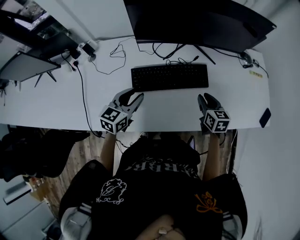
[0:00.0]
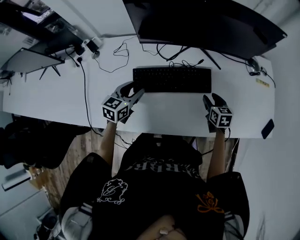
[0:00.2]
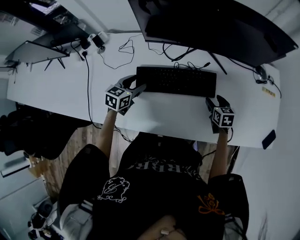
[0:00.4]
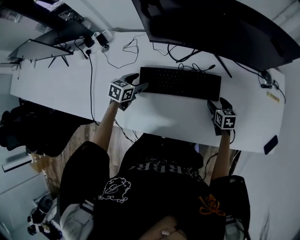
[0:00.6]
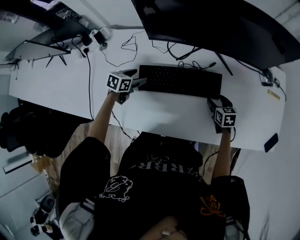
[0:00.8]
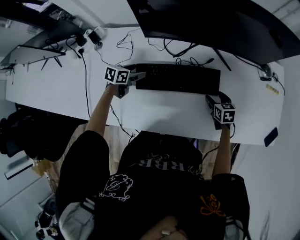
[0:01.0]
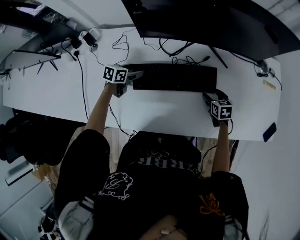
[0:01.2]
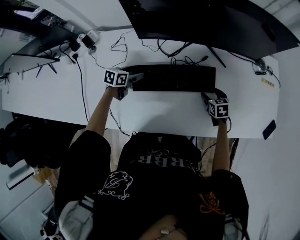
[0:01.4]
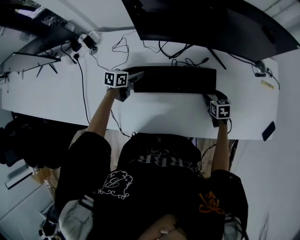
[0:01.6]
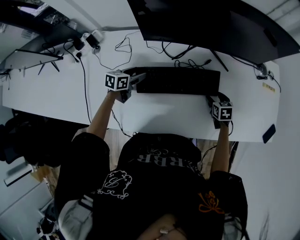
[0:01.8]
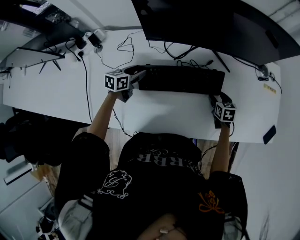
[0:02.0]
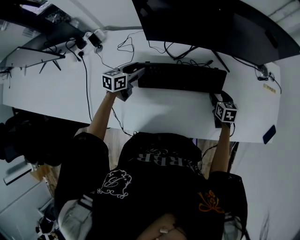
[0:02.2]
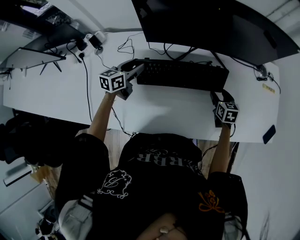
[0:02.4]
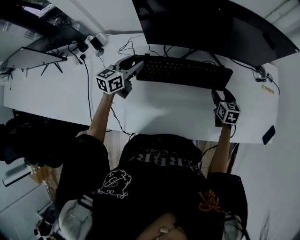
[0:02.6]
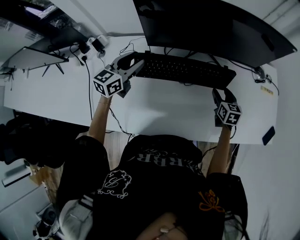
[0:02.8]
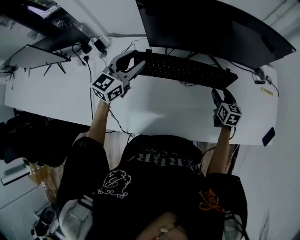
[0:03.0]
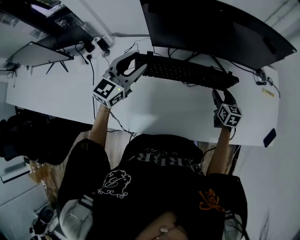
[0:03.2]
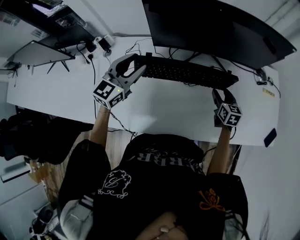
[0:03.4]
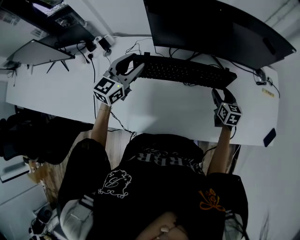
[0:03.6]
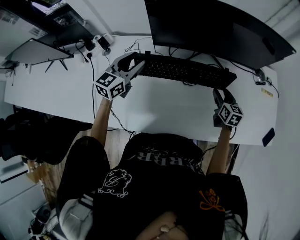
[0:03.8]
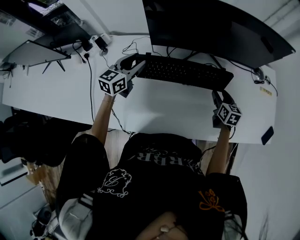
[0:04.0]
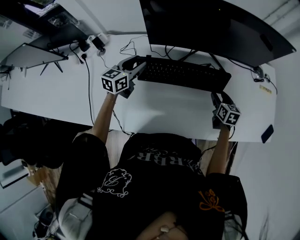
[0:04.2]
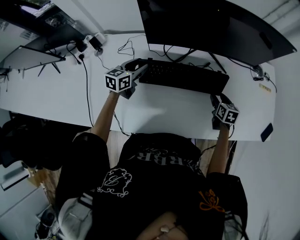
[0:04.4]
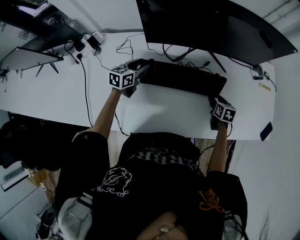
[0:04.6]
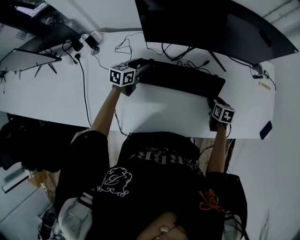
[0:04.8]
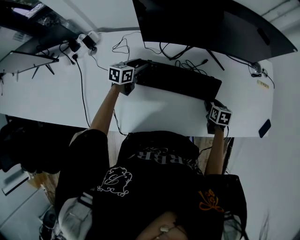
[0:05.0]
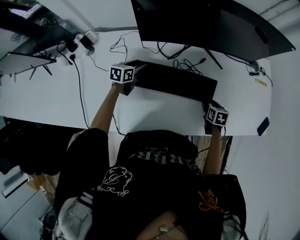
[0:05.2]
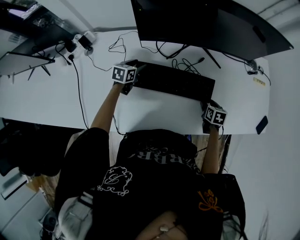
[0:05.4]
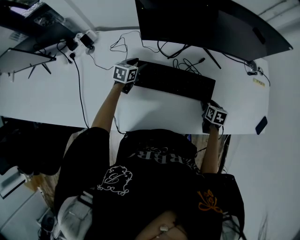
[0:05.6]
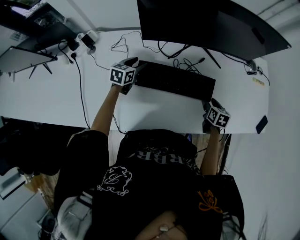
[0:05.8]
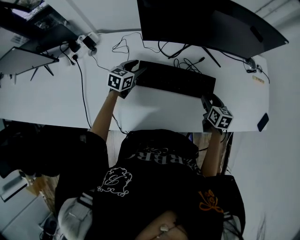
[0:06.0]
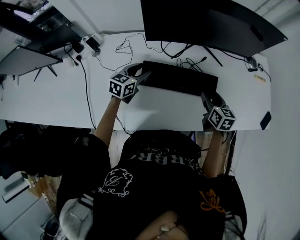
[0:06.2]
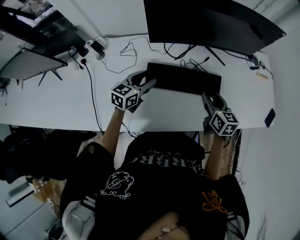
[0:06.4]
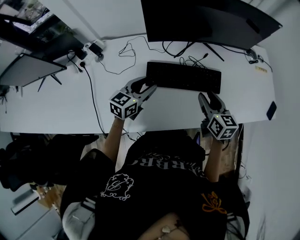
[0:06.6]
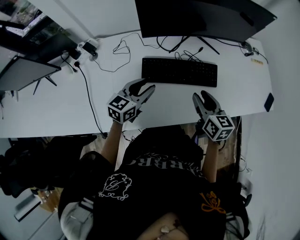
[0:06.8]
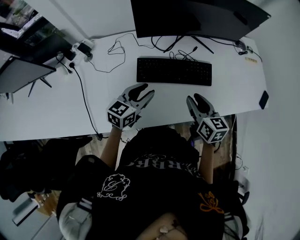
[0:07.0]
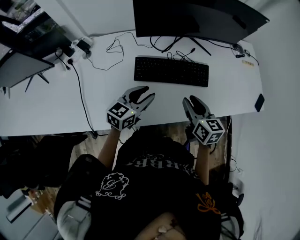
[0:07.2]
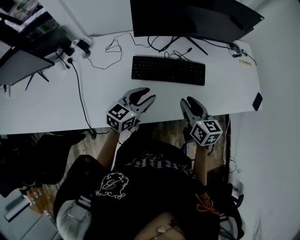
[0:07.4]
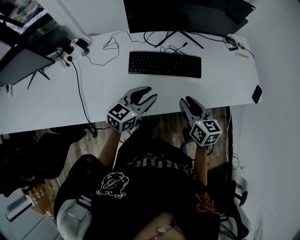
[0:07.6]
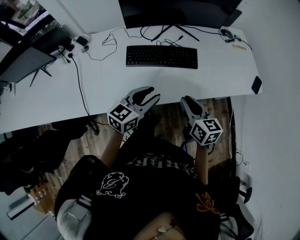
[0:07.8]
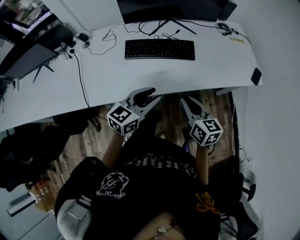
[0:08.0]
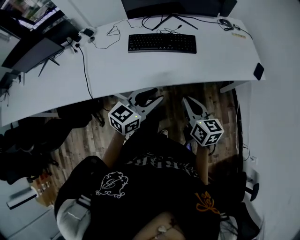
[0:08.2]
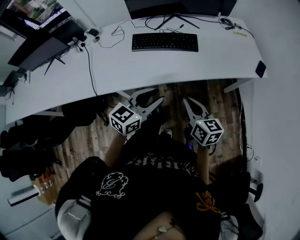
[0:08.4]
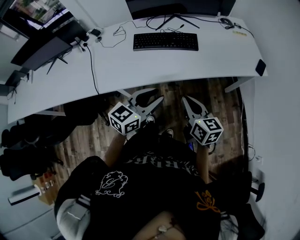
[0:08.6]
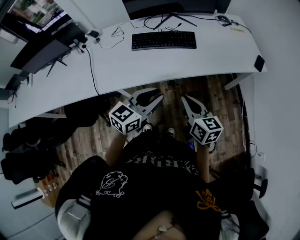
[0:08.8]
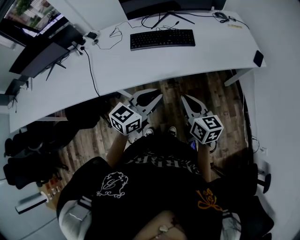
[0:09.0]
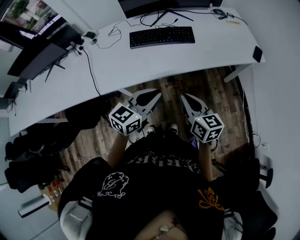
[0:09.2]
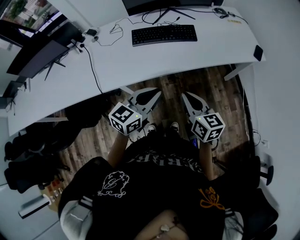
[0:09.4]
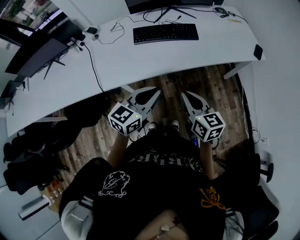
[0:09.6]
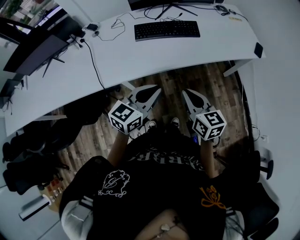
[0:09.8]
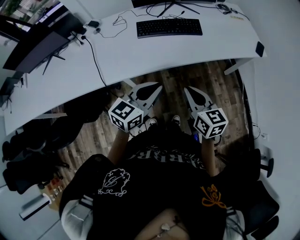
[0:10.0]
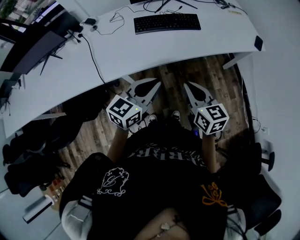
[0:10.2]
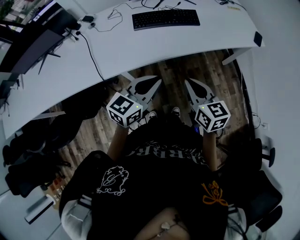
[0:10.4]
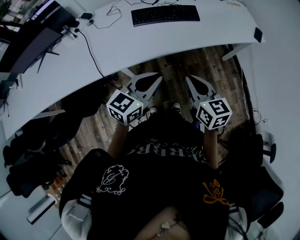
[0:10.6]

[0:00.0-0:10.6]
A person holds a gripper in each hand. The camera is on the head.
0:00.0 to 0:01.6: The grippers both shift downward and forward by about 20 cm. The right gripper swivels roughly 20 degrees, and opens up. Meanwhile the left gripper turns by some 30 degrees, and opens its fingers.
0:01.6 to 0:03.0: The left gripper goes approximately 25 cm upward, and rotates approximately 50 degrees, while the right gripper goes some 10 cm upward, and rotates about 20 degrees.
0:03.0 to 0:04.6: The right gripper travels downward by approximately 10 cm. The left gripper goes about 20 cm downward, and changes its angle by about 30 degrees.
0:04.6 to 0:06.0: The right gripper moves upward and backward, about 10 cm.
0:06.0 to 0:07.6: The right gripper moves backward and upward, some 25 cm, and closes; the left gripper heads backward, to the right and upward, covering approximately 30 cm, and rotates some 20 degrees.
0:07.6 to 0:09.0: The right gripper goes approximately 25 cm backward, and closes up. Meanwhile the left gripper shifts some 25 cm backward and to the right.
0:09.0 to 0:10.6: The grippers both shift to the left and backward by approximately 10 cm.

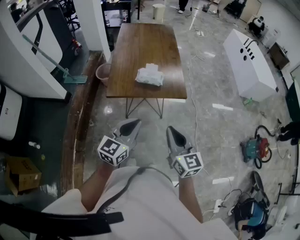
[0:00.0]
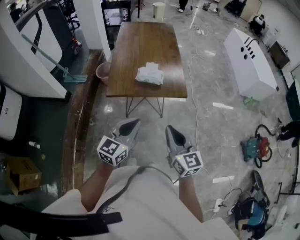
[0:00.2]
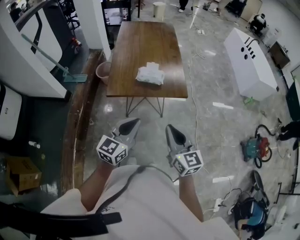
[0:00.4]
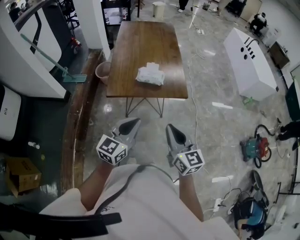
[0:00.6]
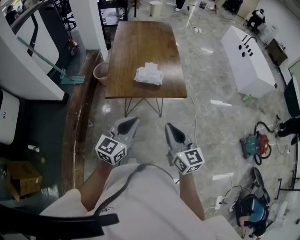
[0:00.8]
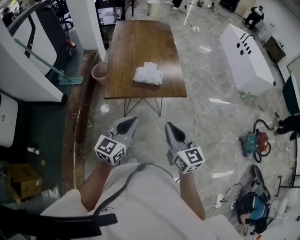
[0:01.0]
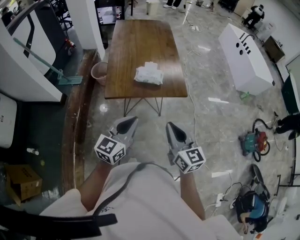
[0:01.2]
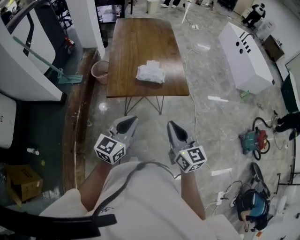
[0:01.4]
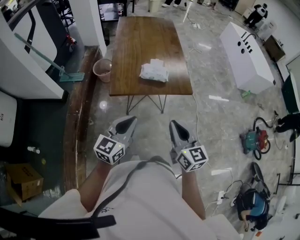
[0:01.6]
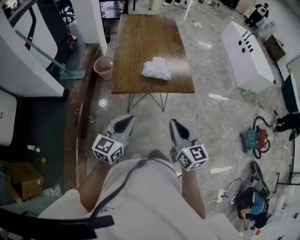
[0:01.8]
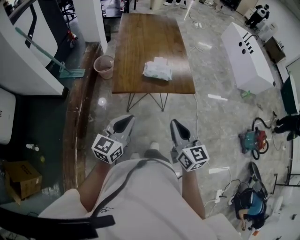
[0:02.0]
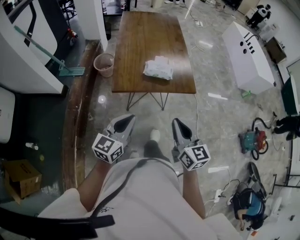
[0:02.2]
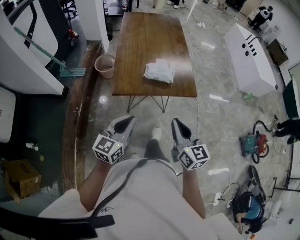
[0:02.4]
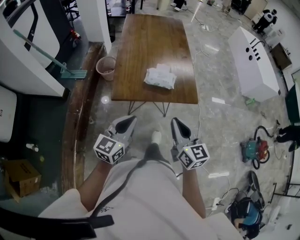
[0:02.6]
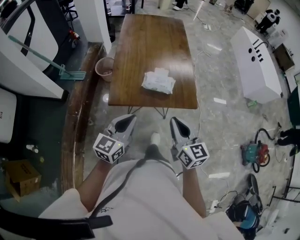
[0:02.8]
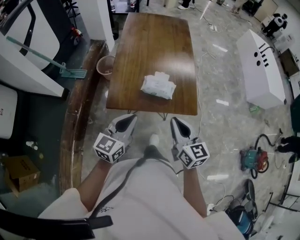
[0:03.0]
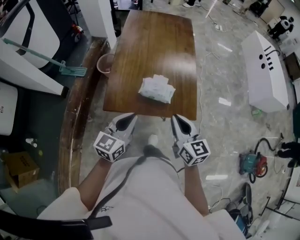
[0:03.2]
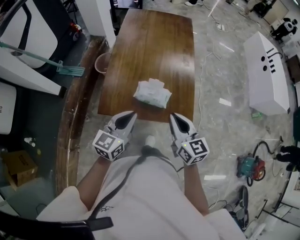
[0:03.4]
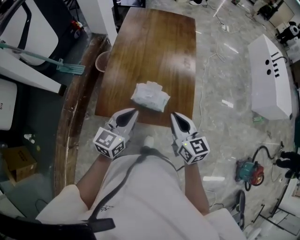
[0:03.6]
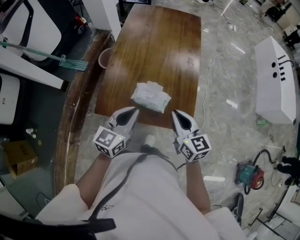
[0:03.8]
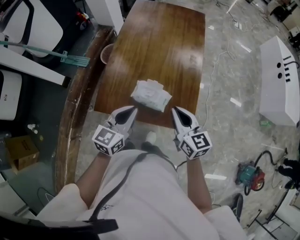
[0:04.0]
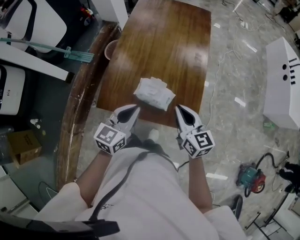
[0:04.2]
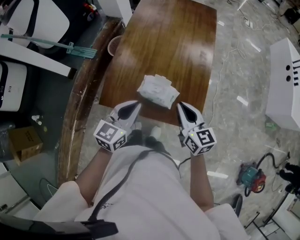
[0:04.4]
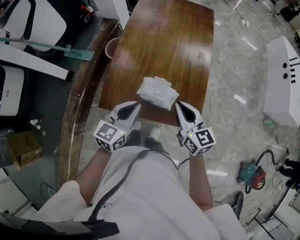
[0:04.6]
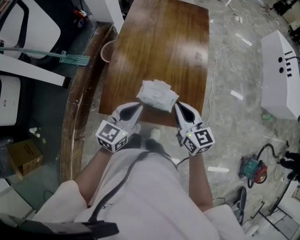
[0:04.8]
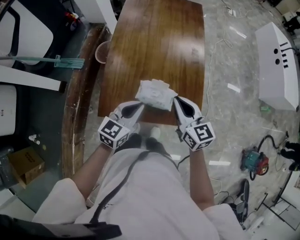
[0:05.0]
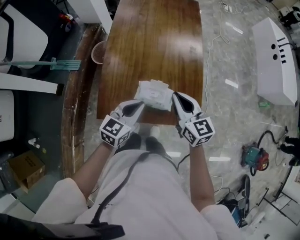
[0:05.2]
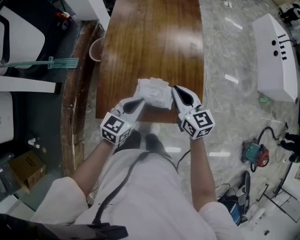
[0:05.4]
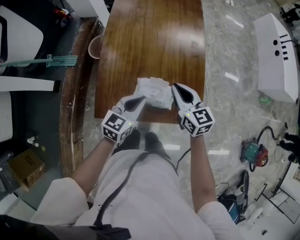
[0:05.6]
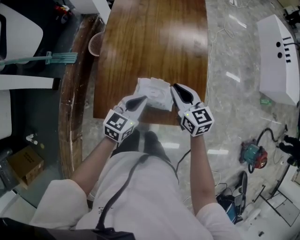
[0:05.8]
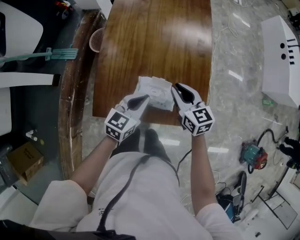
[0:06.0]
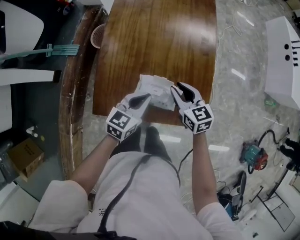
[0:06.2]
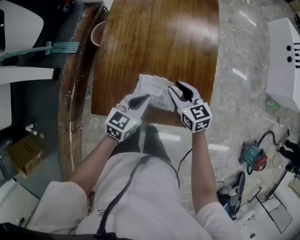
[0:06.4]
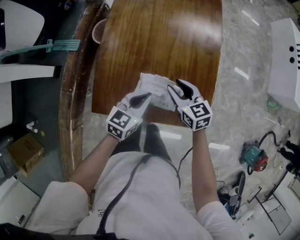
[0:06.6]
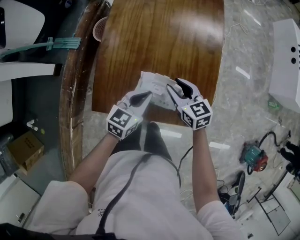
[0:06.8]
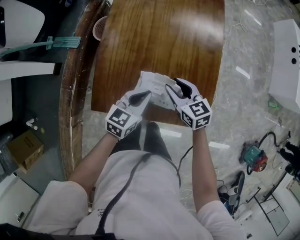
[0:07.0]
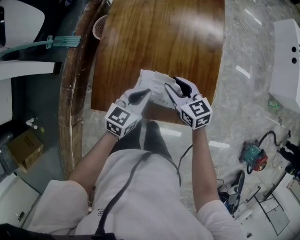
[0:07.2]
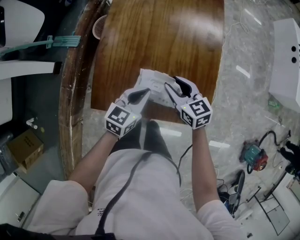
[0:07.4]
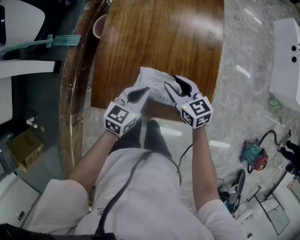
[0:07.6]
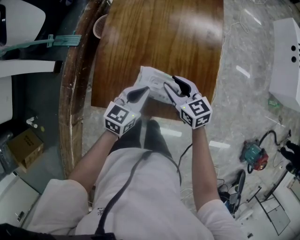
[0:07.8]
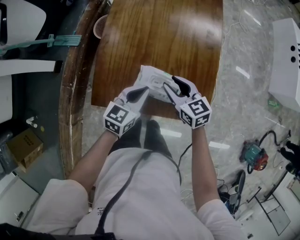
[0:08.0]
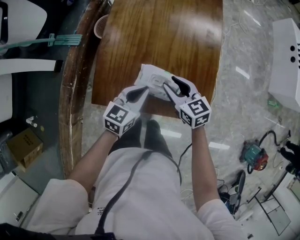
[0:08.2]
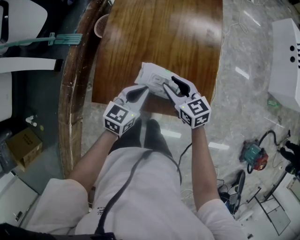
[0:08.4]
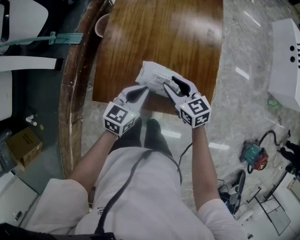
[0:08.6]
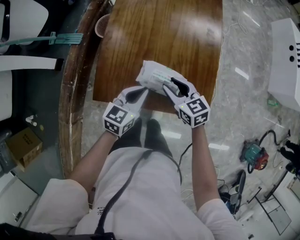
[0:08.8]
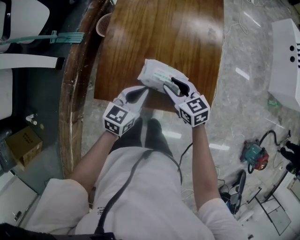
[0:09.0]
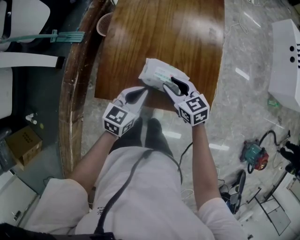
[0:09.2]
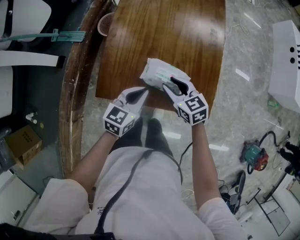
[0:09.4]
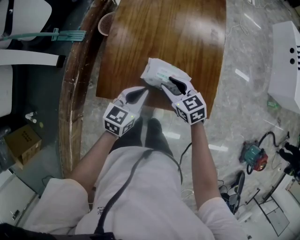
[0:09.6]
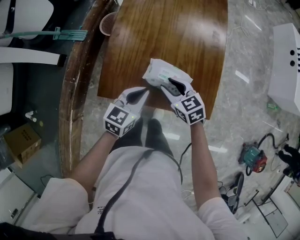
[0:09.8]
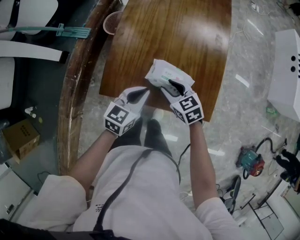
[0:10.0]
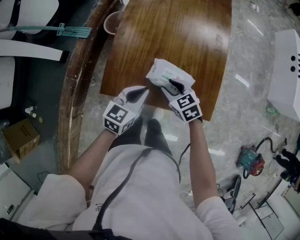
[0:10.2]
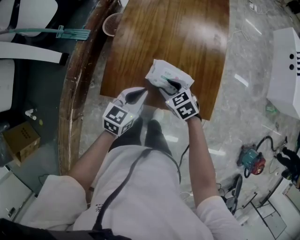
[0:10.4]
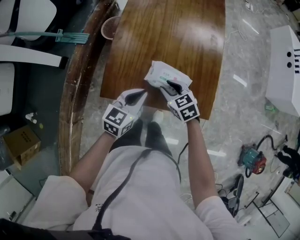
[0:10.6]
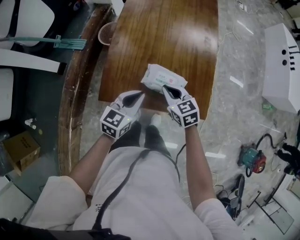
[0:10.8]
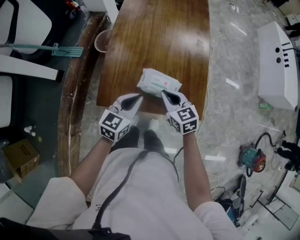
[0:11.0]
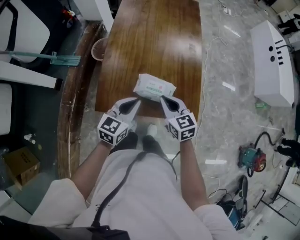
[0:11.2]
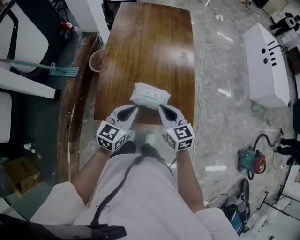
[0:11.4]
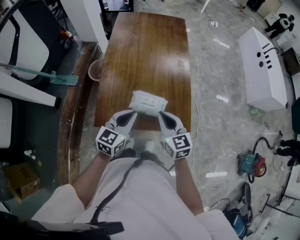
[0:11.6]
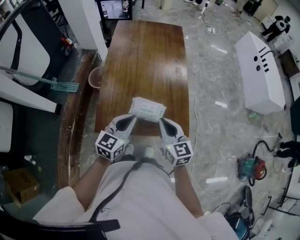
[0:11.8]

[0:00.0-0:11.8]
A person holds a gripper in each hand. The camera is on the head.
0:00.0 to 0:01.4: The left gripper shifts about 5 cm to the left, while the right gripper changes place by roughly 5 cm.
0:01.4 to 0:03.0: The grippers both shift forward by about 15 cm.
0:03.0 to 0:04.4: The left gripper goes roughly 20 cm forward and to the right, while the right gripper travels forward by roughly 20 cm.
0:04.4 to 0:06.0: The right gripper heads forward and downward, covering roughly 15 cm; the left gripper is displaced downward and forward by about 15 cm.
0:06.0 to 0:07.4: The right gripper heads downward, covering some 5 cm, and opens its fingers.
0:07.4 to 0:08.8: The right gripper is displaced backward by some 5 cm.
0:08.8 to 0:10.4: The right gripper goes some 5 cm to the left, and swivels approximately 20 degrees.
0:10.4 to 0:11.8: The left gripper moves upward, approximately 10 cm, while the right gripper shifts some 20 cm upward, tips its fingers upward by some 30 degrees, and closes its fingers.

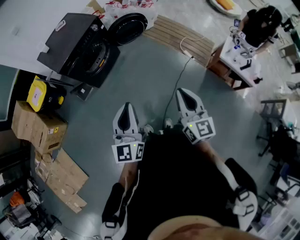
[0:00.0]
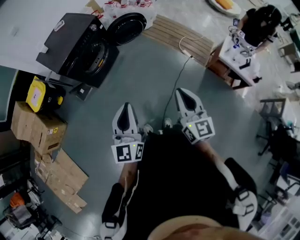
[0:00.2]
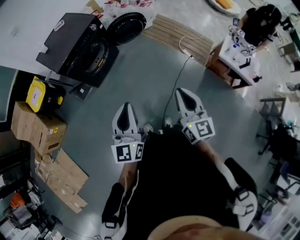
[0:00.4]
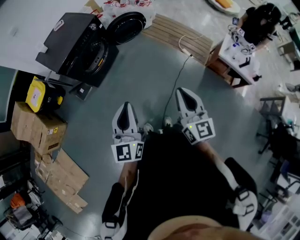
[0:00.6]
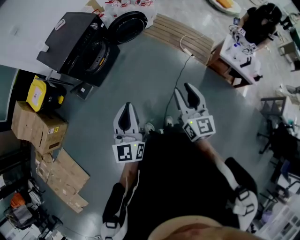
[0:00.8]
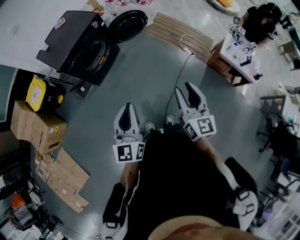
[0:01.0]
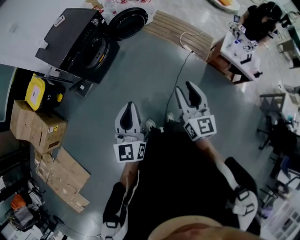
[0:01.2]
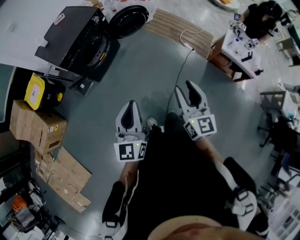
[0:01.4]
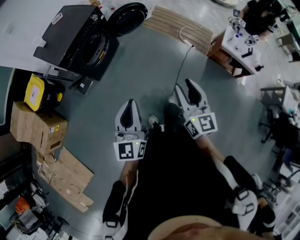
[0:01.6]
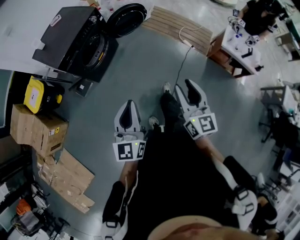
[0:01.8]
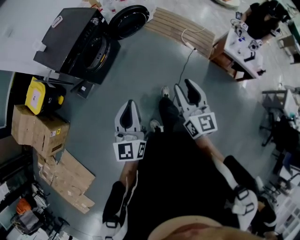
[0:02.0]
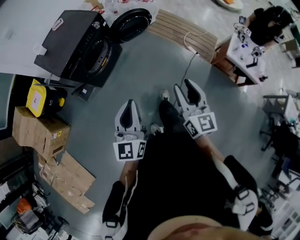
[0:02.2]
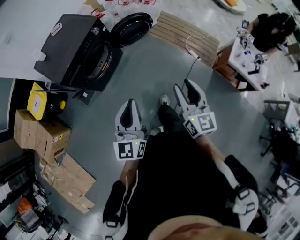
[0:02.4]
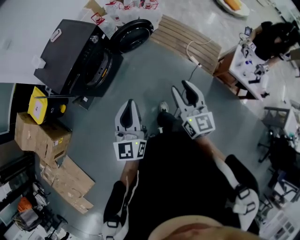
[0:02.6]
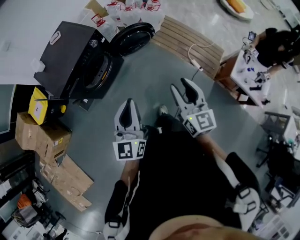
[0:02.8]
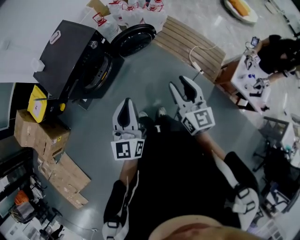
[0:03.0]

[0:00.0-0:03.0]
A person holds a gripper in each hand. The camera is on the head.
0:00.0 to 0:01.6: The grippers both shift to the left by approximately 5 cm. The right gripper opens.
0:01.6 to 0:03.0: Both grippers travel together forward, approximately 35 cm.
